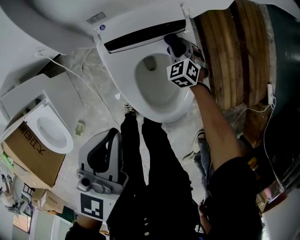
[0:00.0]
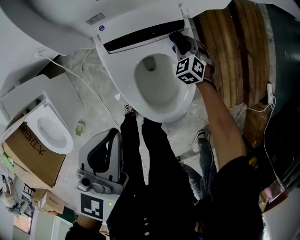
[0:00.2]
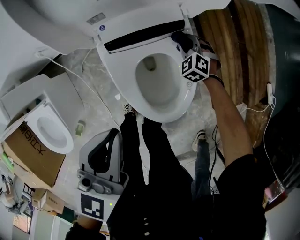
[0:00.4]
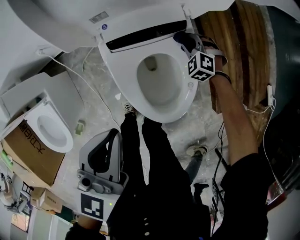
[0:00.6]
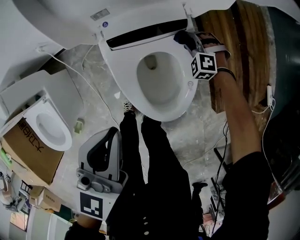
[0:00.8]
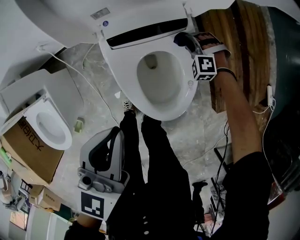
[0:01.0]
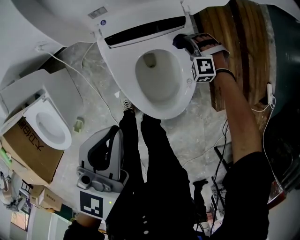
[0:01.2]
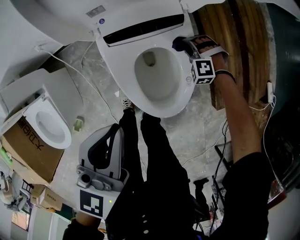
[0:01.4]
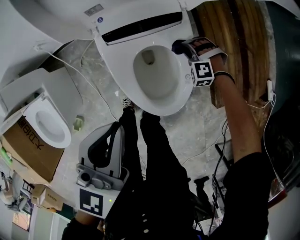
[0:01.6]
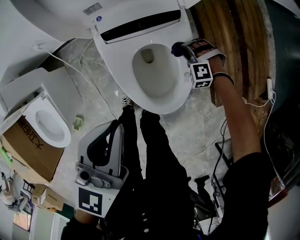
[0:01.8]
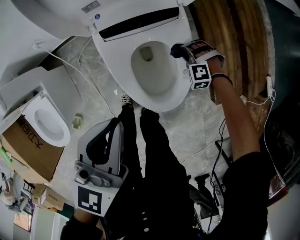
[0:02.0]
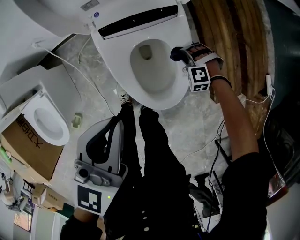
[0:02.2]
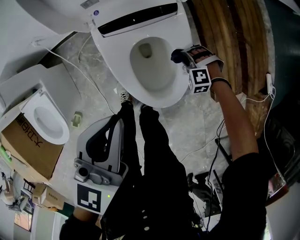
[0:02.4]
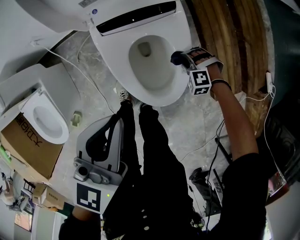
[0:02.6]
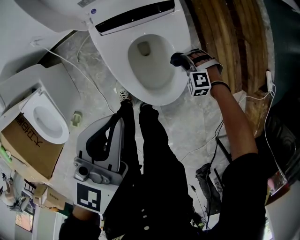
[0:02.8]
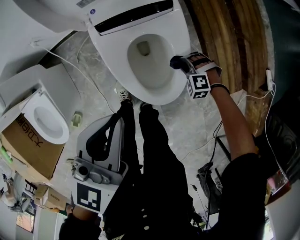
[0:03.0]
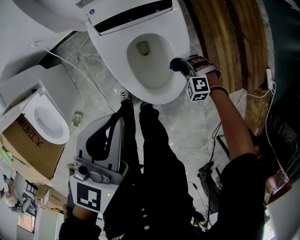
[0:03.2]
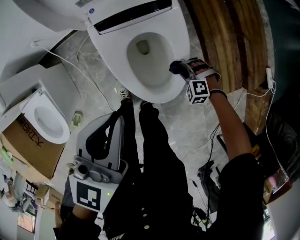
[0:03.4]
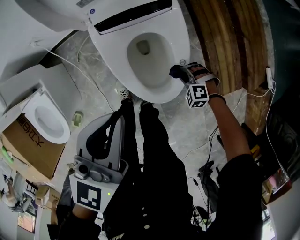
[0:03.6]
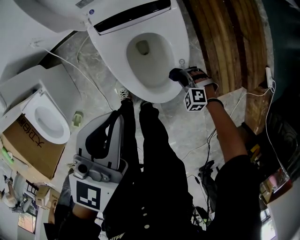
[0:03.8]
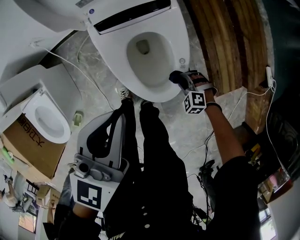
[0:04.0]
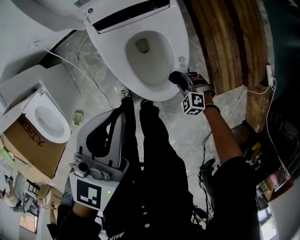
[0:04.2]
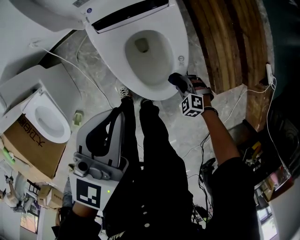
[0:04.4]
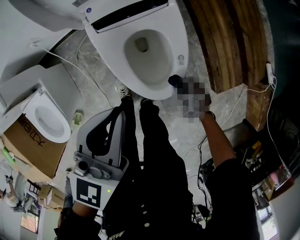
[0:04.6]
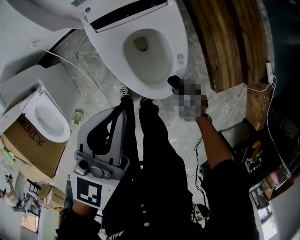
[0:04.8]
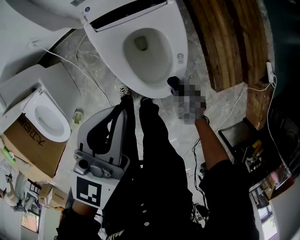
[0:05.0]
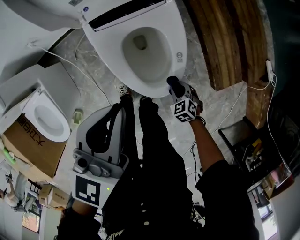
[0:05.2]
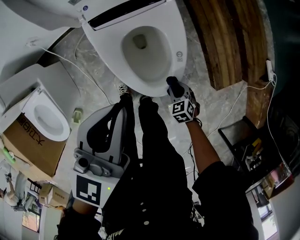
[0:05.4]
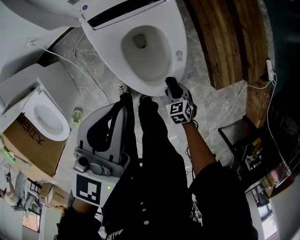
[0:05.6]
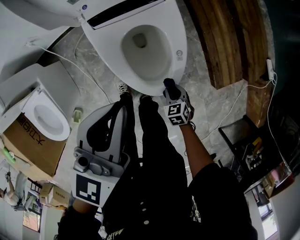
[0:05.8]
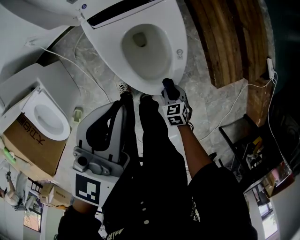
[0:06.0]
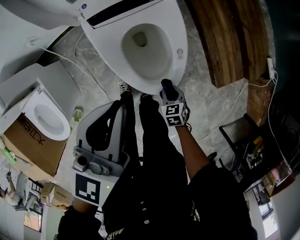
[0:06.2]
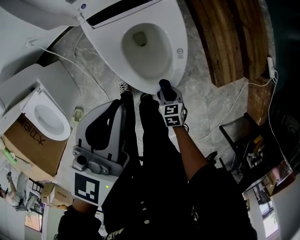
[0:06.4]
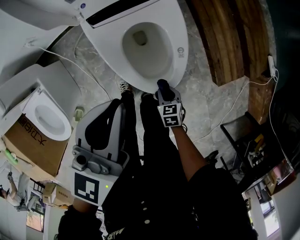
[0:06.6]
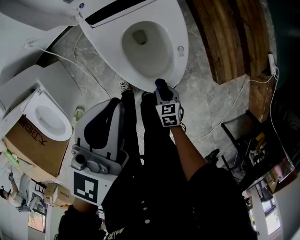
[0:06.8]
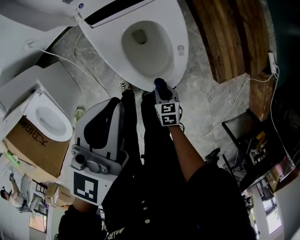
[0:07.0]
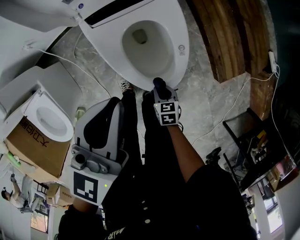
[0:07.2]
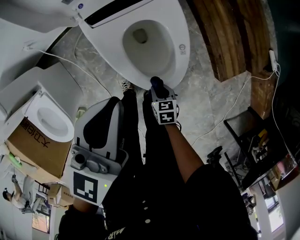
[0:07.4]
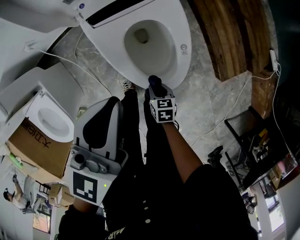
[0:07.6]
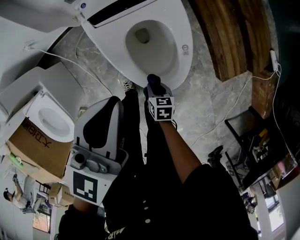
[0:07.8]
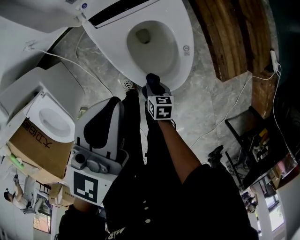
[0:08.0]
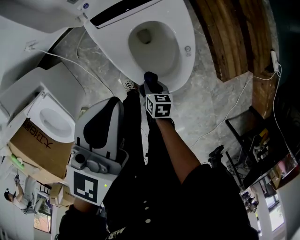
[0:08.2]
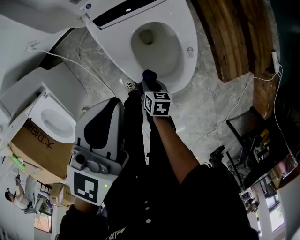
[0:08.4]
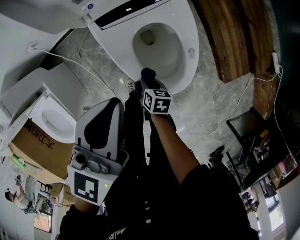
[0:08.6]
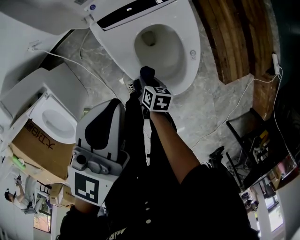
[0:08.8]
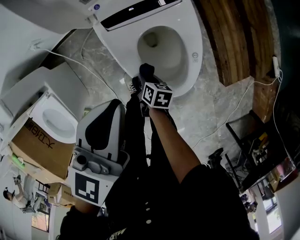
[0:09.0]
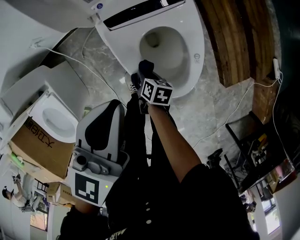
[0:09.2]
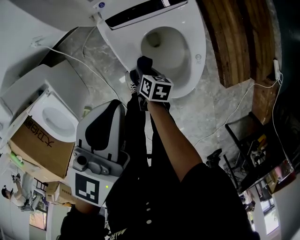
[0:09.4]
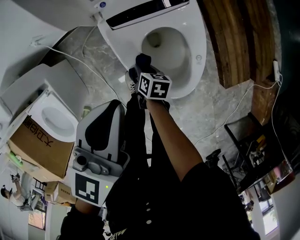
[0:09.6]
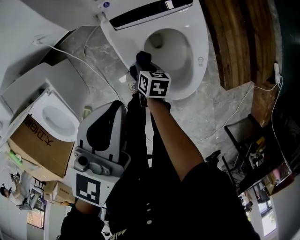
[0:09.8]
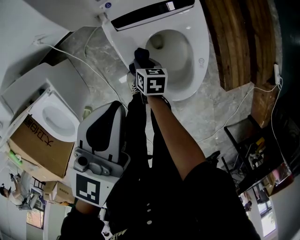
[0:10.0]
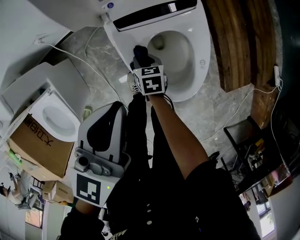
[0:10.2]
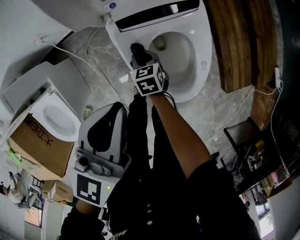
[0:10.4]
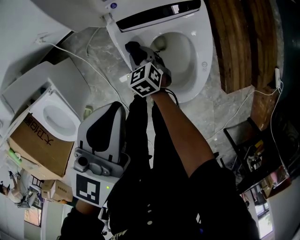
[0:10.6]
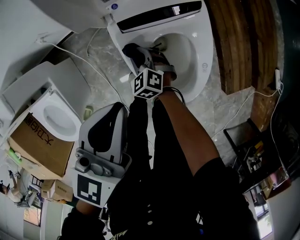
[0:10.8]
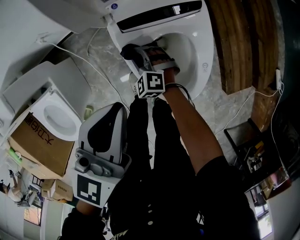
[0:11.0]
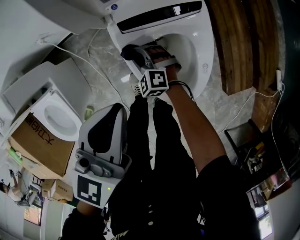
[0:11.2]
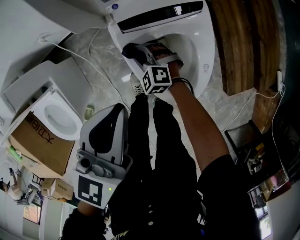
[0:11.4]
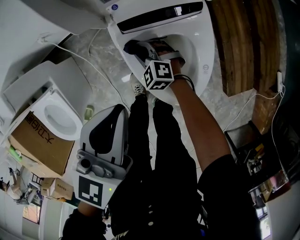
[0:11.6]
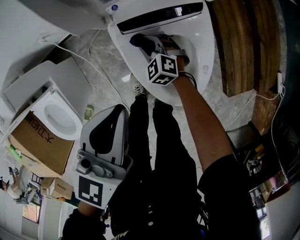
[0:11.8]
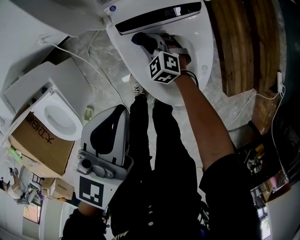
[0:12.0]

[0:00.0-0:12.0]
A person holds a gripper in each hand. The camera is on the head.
0:00.0 to 0:01.6: The right gripper heads backward, covering some 5 cm, and rolls counterclockwise, seen from behind, by some 50 degrees.
0:01.6 to 0:03.0: The right gripper goes about 15 cm backward.
0:03.0 to 0:04.4: The right gripper heads backward, covering about 10 cm, and changes its angle by approximately 30 degrees.
0:04.4 to 0:06.0: The right gripper ends up roughly 5 cm from where it was, and twists approximately 50 degrees clockwise, seen from behind.
0:06.0 to 0:07.6: The right gripper is displaced to the left by approximately 10 cm, and turns by roughly 30 degrees.
0:07.6 to 0:09.0: The right gripper goes some 10 cm forward and to the left, and turns by roughly 20 degrees. The left gripper moves some 5 cm.
0:09.0 to 0:10.4: The right gripper is displaced forward and to the left by about 15 cm, and rolls counterclockwise, seen from behind, by some 40 degrees.
0:10.4 to 0:12.0: The right gripper moves forward, about 5 cm, and twists approximately 50 degrees counterclockwise, seen from behind.

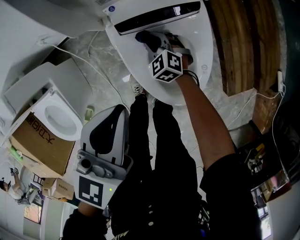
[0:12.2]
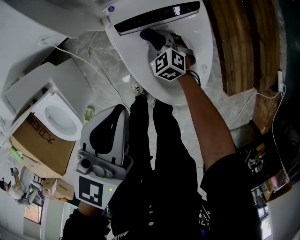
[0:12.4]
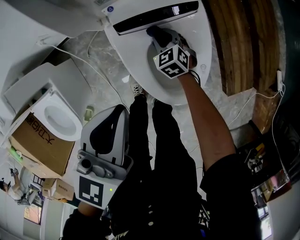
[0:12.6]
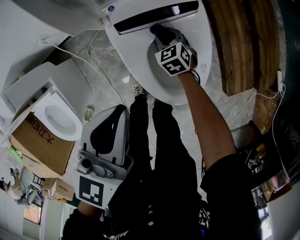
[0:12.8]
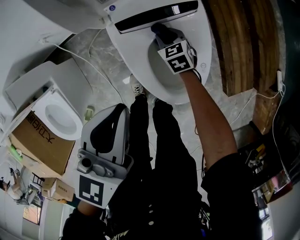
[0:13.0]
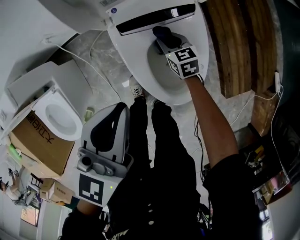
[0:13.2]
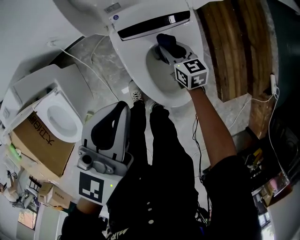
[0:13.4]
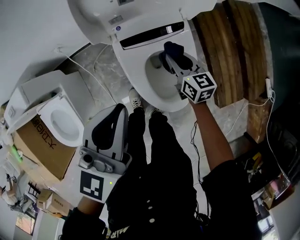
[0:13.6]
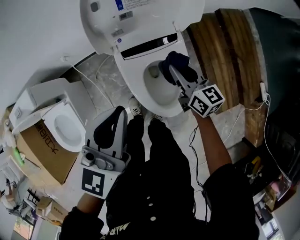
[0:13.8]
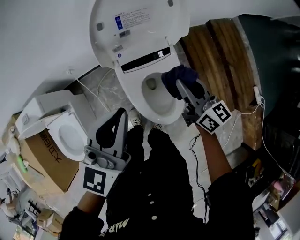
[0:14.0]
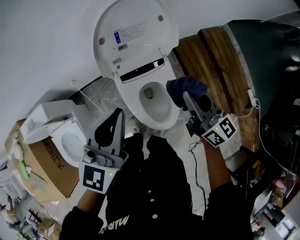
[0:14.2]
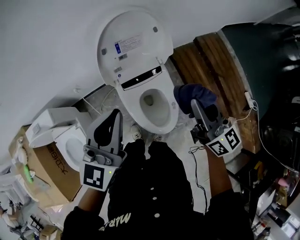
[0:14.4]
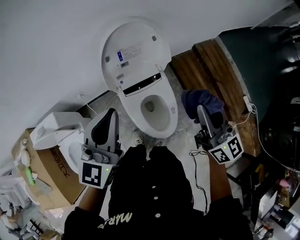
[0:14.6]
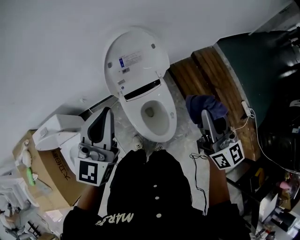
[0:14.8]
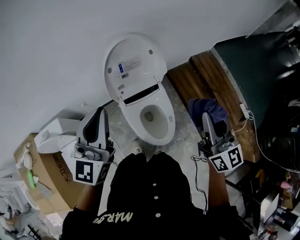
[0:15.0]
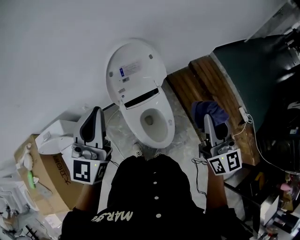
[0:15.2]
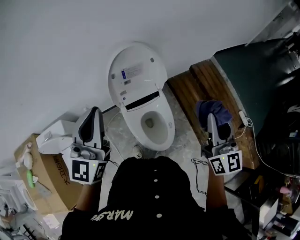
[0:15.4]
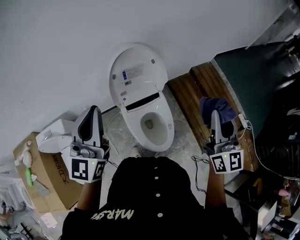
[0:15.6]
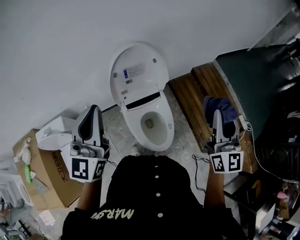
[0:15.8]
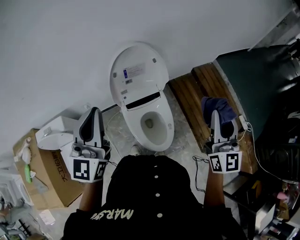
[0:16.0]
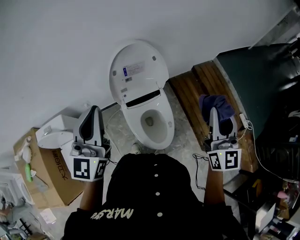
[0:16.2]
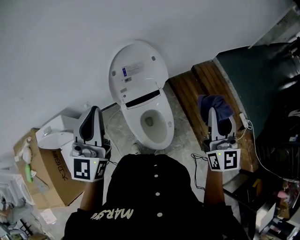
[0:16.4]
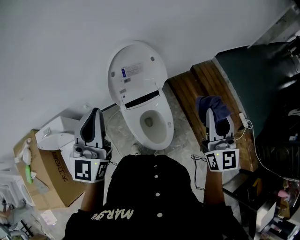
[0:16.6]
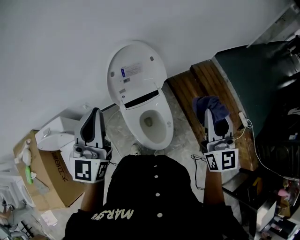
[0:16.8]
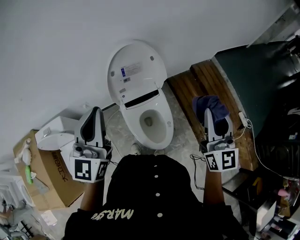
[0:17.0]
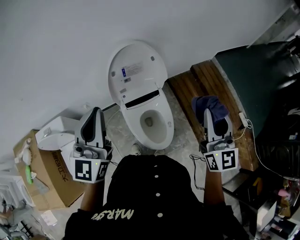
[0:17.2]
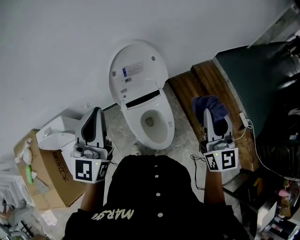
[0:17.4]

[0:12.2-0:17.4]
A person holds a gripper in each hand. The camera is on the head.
0:12.2 to 0:14.0: The left gripper goes about 20 cm upward. Meanwhile the right gripper goes some 40 cm upward, and tips its fingers upward by approximately 40 degrees.
0:14.0 to 0:15.6: The left gripper heads upward, covering roughly 25 cm, and turns by some 20 degrees. Meanwhile the right gripper is displaced upward and to the right by some 35 cm, and changes its angle by approximately 40 degrees.
0:15.6 to 0:17.4: The grippers make only small movements.

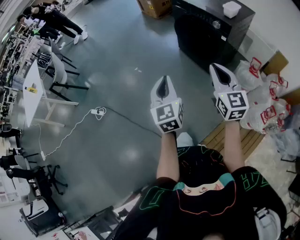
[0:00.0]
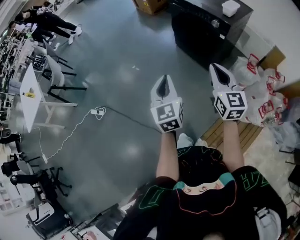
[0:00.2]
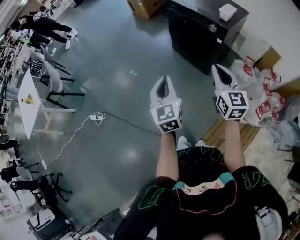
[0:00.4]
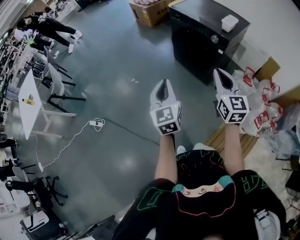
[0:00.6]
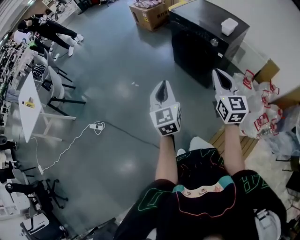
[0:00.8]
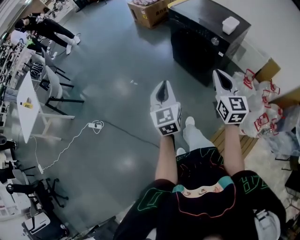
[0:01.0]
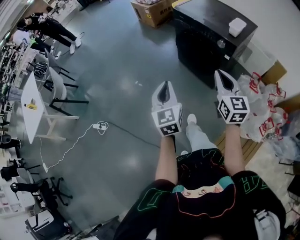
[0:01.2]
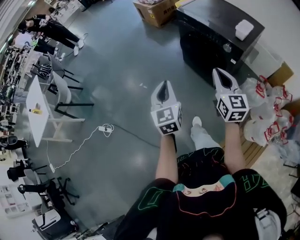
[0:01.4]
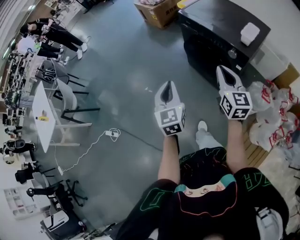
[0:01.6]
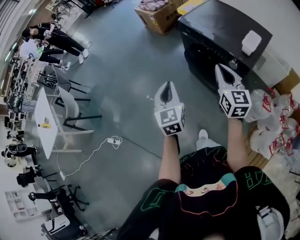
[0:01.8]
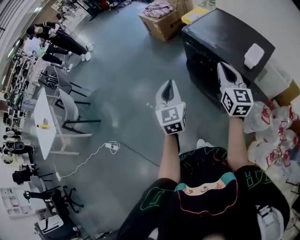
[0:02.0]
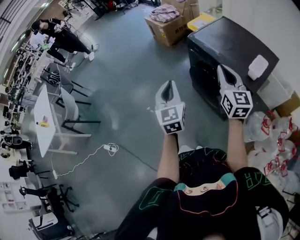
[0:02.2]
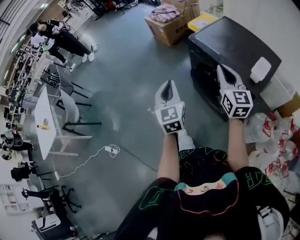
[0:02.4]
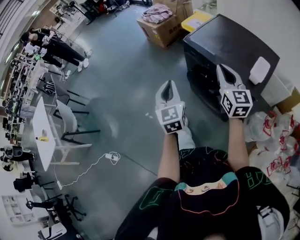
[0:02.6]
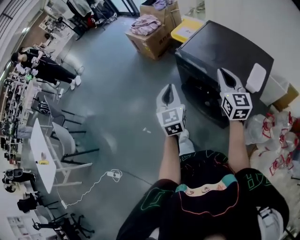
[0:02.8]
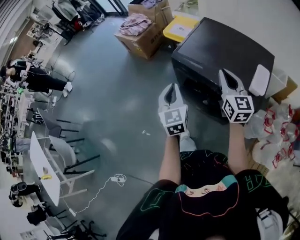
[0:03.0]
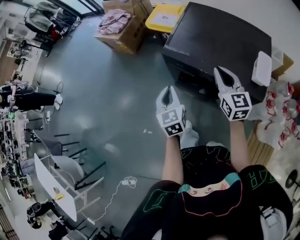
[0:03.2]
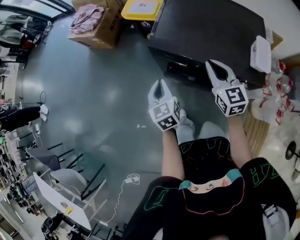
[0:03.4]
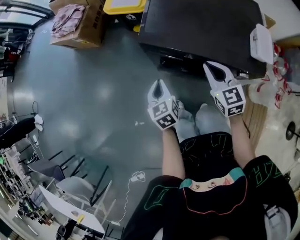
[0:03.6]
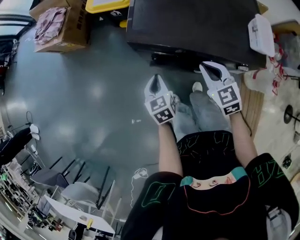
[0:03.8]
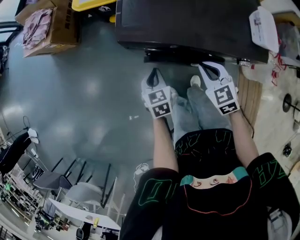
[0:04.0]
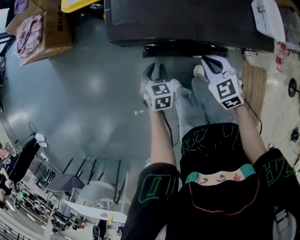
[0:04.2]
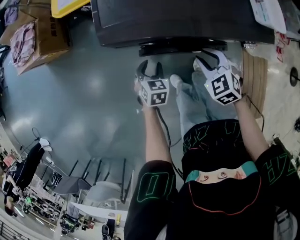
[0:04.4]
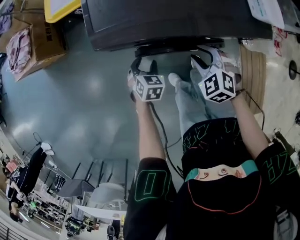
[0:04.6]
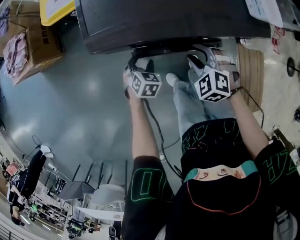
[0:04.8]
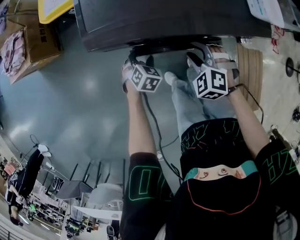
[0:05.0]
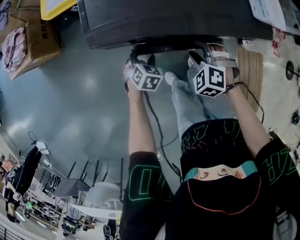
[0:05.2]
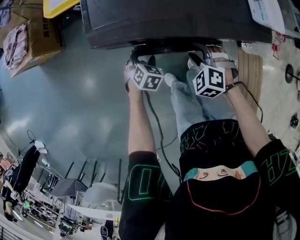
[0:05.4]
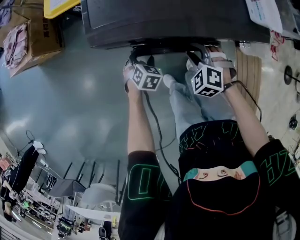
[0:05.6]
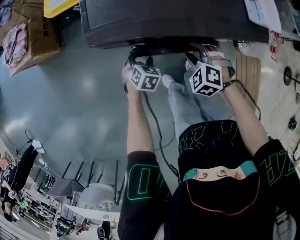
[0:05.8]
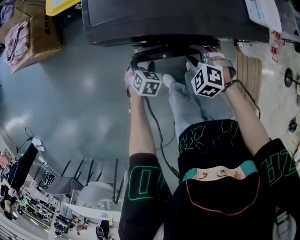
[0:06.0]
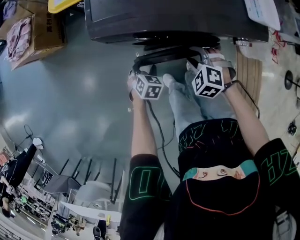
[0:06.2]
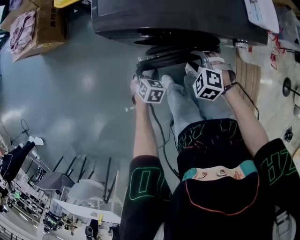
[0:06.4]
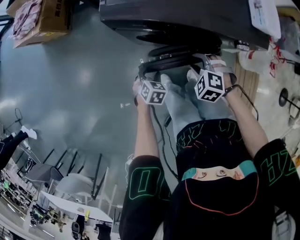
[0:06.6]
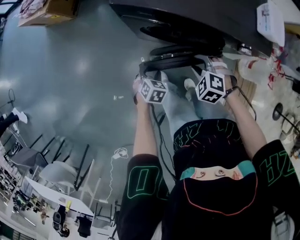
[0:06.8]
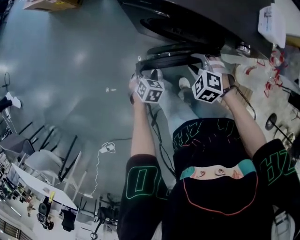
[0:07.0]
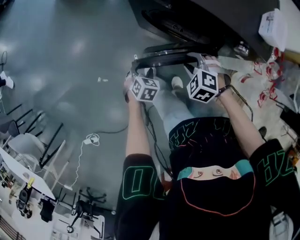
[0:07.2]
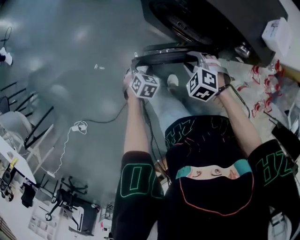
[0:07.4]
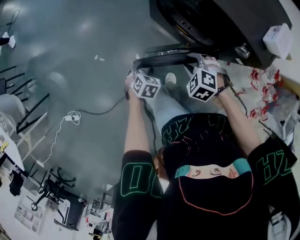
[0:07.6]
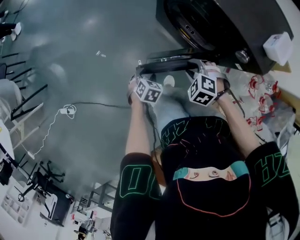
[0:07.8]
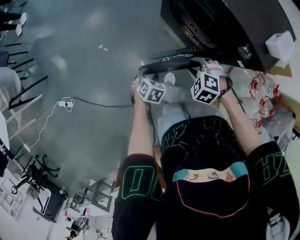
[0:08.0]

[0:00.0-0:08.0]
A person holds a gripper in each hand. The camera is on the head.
0:00.0 to 0:01.6: Both grippers travel together forward, roughly 30 cm.
0:01.6 to 0:03.2: The two grippers travel together, forward, approximately 40 cm. The left gripper swivels some 20 degrees.
0:03.2 to 0:04.8: Both grippers move downward, about 30 cm. The left gripper tips its fingers downward by roughly 40 degrees, and opens its fingers, while the right gripper points its fingers some 50 degrees further downward, and opens.
0:04.8 to 0:06.4: The left gripper travels backward by roughly 10 cm; the right gripper heads backward, covering roughly 5 cm.
0:06.4 to 0:08.0: The right gripper changes place by roughly 20 cm, and rotates around the line of its fingers by roughly 40 degrees, counterclockwise from behind; the left gripper changes place by some 30 cm, and rolls counterclockwise, seen from behind, by roughly 40 degrees.
